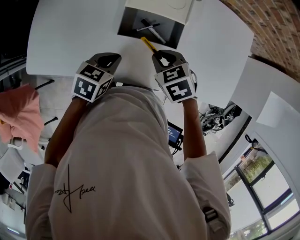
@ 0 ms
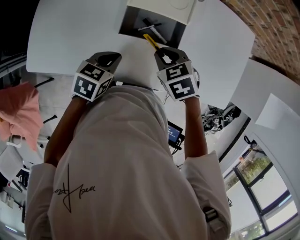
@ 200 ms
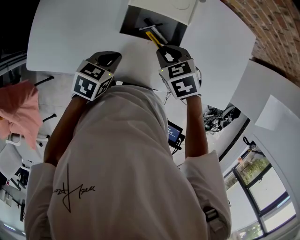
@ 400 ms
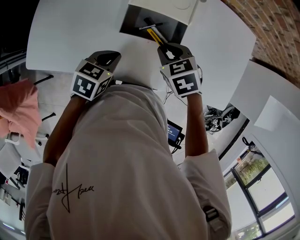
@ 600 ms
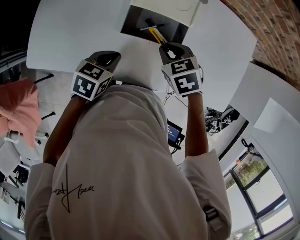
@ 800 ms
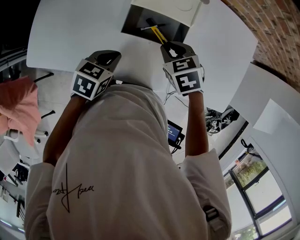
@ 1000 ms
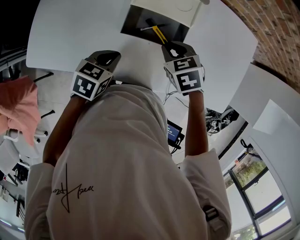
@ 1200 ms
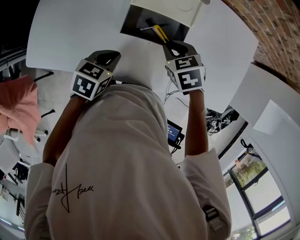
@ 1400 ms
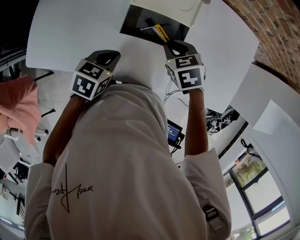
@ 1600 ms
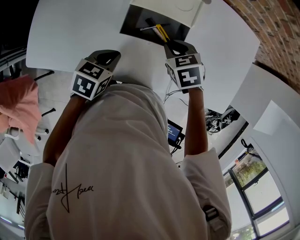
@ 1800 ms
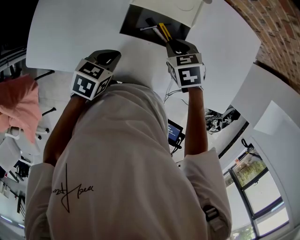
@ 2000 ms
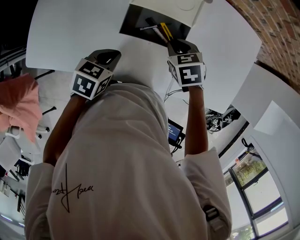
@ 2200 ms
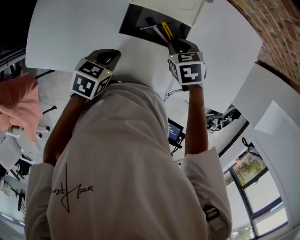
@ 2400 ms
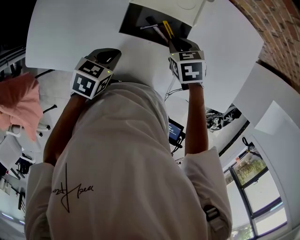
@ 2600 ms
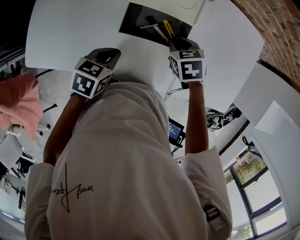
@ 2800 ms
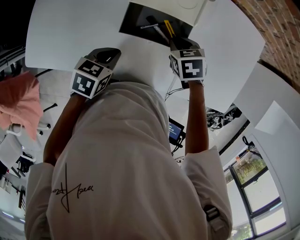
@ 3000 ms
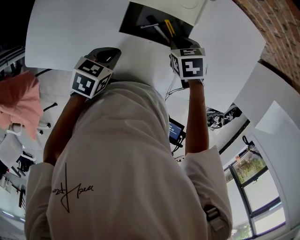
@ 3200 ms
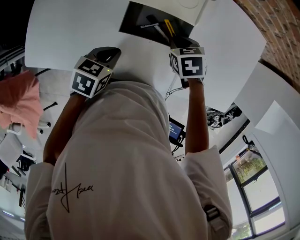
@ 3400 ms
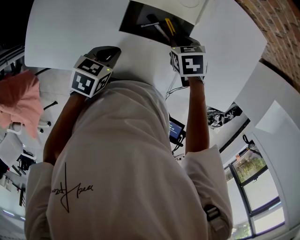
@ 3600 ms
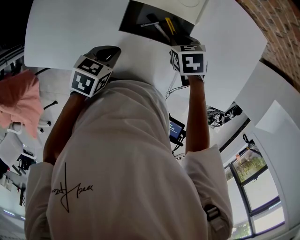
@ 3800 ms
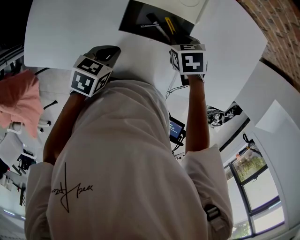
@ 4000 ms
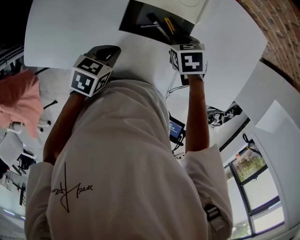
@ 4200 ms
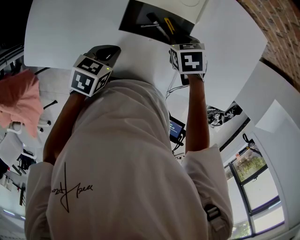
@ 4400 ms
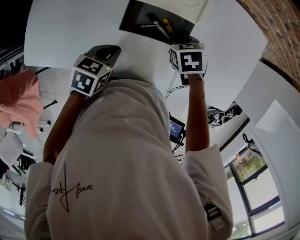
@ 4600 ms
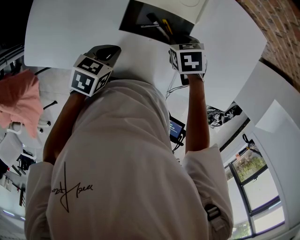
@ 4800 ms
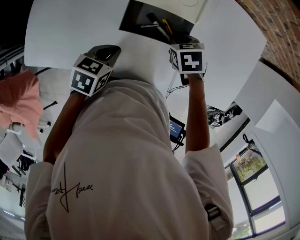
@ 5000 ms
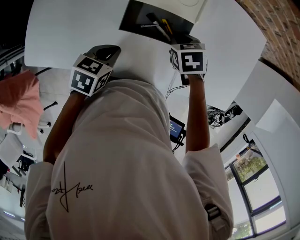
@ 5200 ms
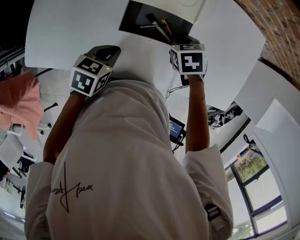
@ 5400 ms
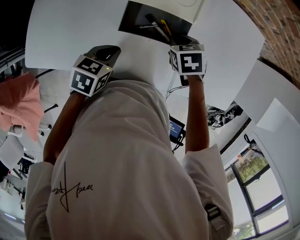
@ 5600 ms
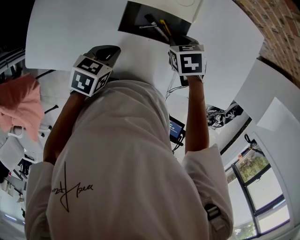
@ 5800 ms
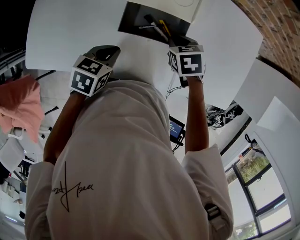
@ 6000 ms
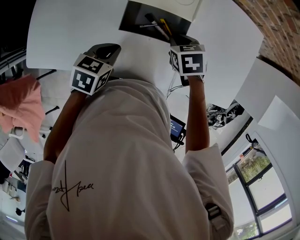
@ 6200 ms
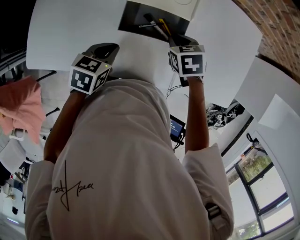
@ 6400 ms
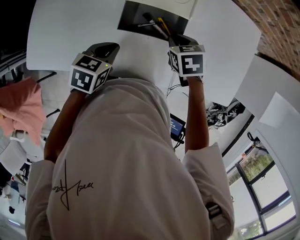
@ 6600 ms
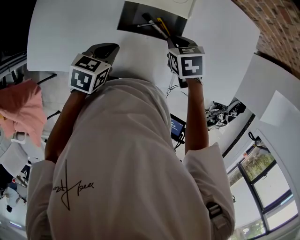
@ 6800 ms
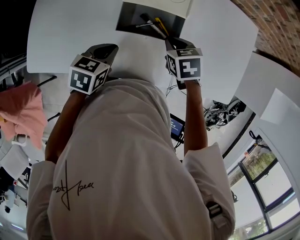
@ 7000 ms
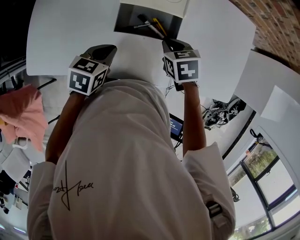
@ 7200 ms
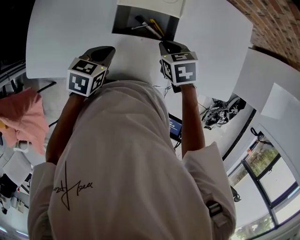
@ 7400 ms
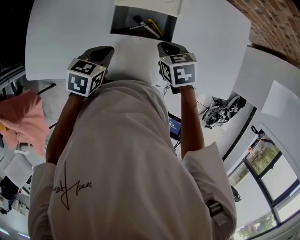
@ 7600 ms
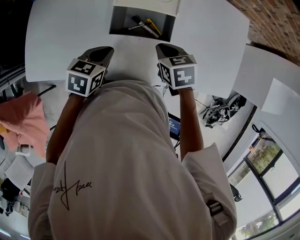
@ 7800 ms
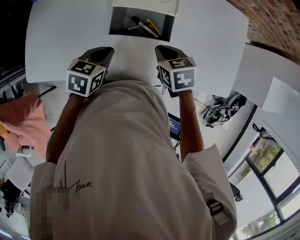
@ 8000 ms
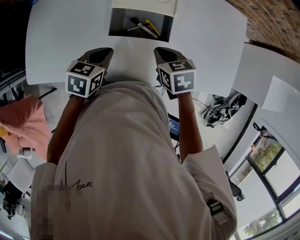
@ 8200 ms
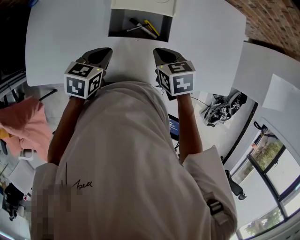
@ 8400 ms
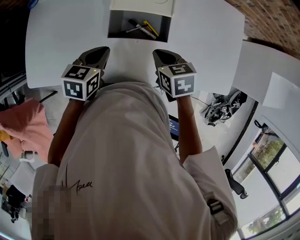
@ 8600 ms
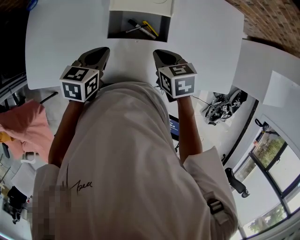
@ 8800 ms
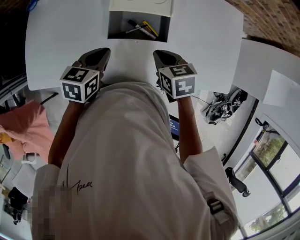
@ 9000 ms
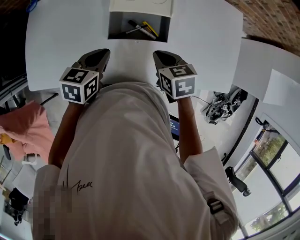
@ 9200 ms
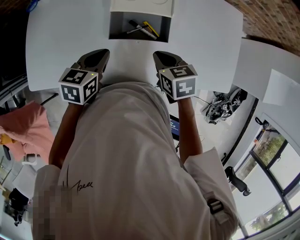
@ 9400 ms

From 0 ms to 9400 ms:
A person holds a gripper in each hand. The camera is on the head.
From 0 ms to 1600 ms: The right gripper travels forward by roughly 5 cm.
From 1600 ms to 3200 ms: The right gripper shifts by roughly 5 cm.
From 3200 ms to 4800 ms: Neither gripper changes place.
From 4800 ms to 6200 ms: The grippers stay close to where they were, moving slightly.
From 6200 ms to 7800 ms: The right gripper travels backward by some 5 cm.
From 7800 ms to 9400 ms: The grippers stay close to where they were, moving slightly.

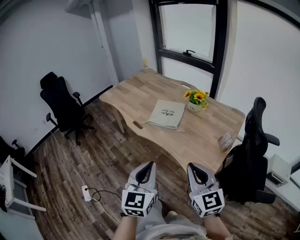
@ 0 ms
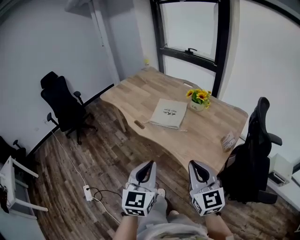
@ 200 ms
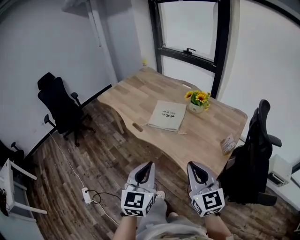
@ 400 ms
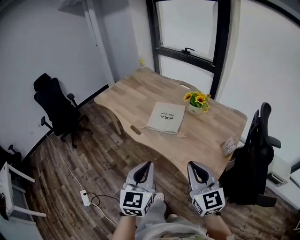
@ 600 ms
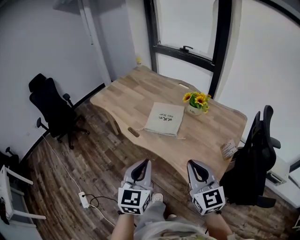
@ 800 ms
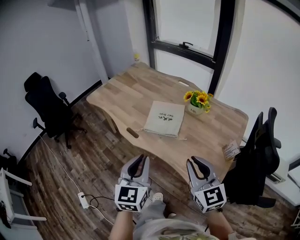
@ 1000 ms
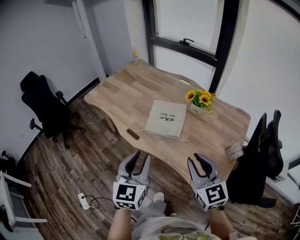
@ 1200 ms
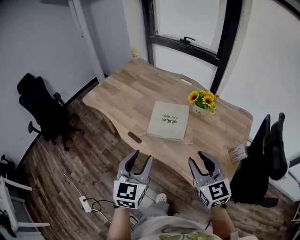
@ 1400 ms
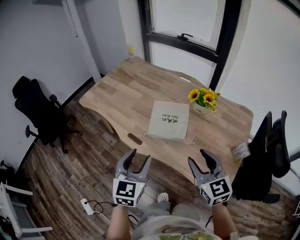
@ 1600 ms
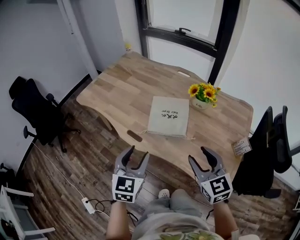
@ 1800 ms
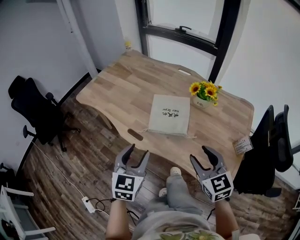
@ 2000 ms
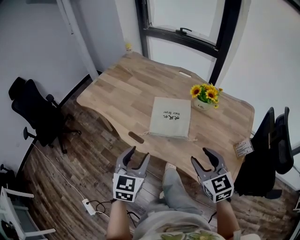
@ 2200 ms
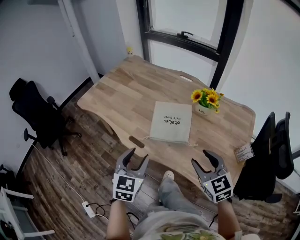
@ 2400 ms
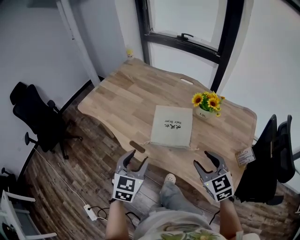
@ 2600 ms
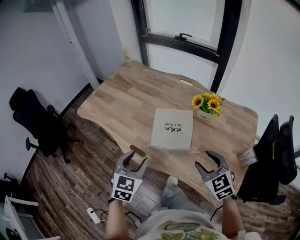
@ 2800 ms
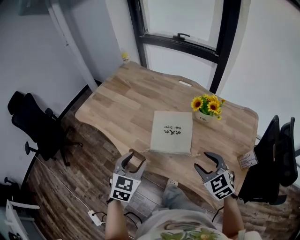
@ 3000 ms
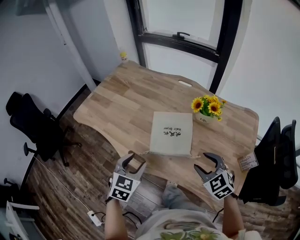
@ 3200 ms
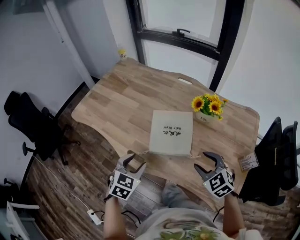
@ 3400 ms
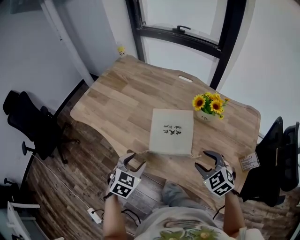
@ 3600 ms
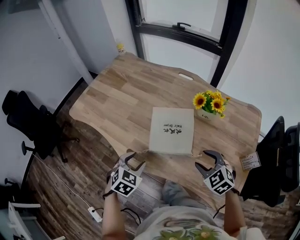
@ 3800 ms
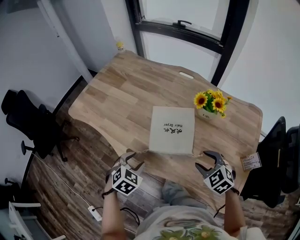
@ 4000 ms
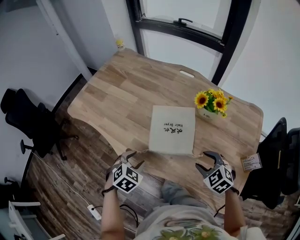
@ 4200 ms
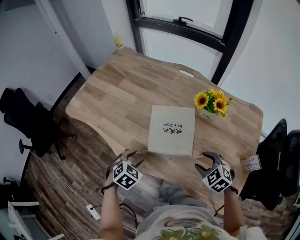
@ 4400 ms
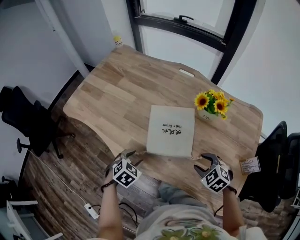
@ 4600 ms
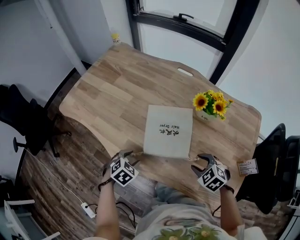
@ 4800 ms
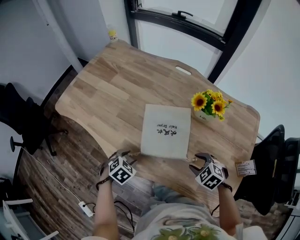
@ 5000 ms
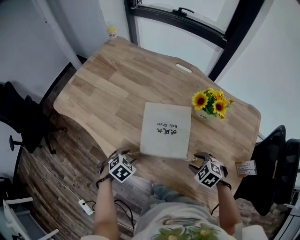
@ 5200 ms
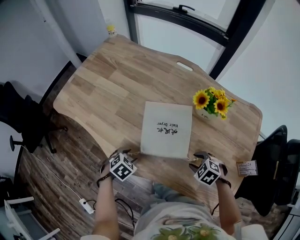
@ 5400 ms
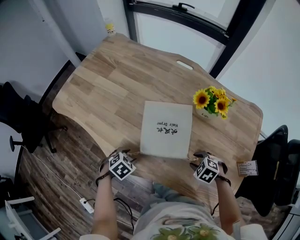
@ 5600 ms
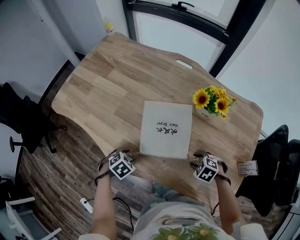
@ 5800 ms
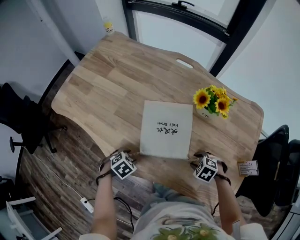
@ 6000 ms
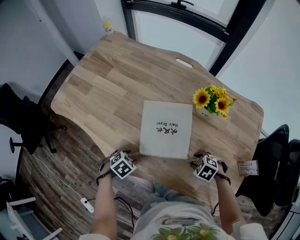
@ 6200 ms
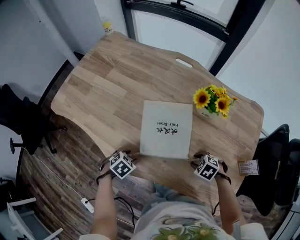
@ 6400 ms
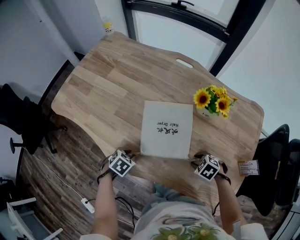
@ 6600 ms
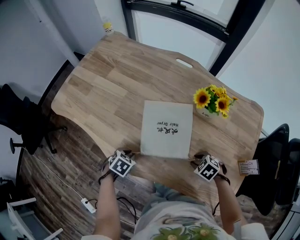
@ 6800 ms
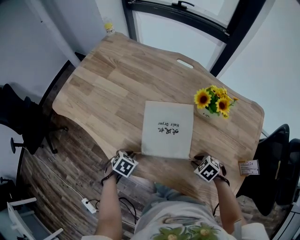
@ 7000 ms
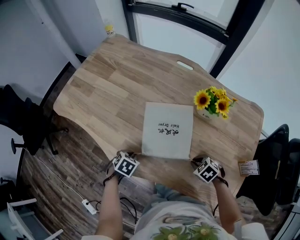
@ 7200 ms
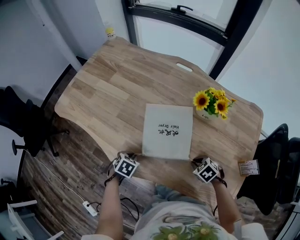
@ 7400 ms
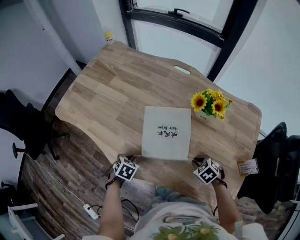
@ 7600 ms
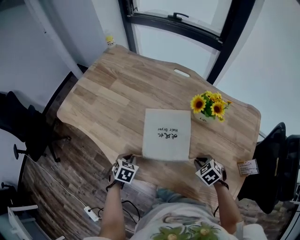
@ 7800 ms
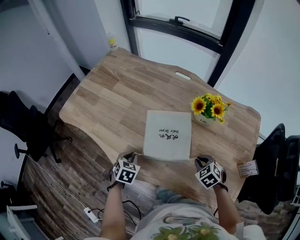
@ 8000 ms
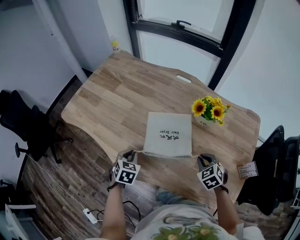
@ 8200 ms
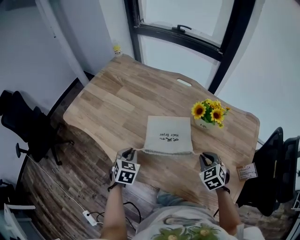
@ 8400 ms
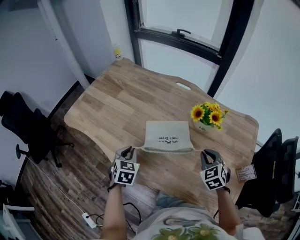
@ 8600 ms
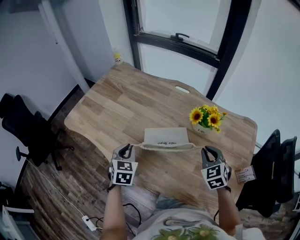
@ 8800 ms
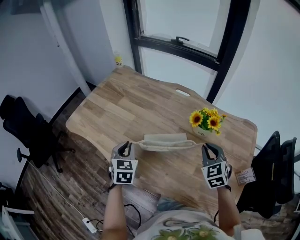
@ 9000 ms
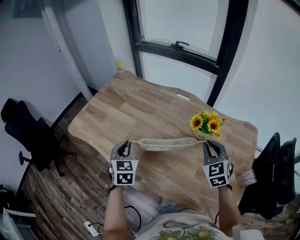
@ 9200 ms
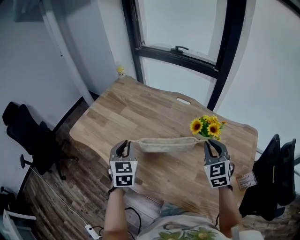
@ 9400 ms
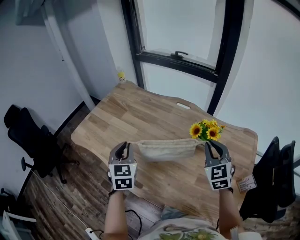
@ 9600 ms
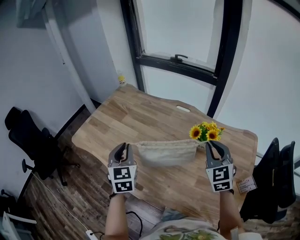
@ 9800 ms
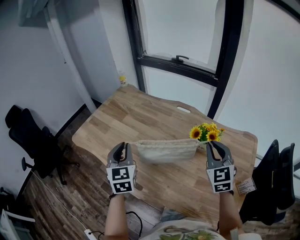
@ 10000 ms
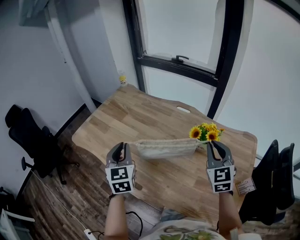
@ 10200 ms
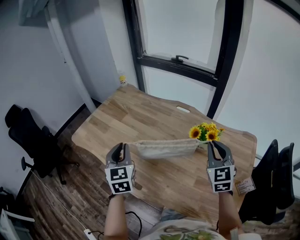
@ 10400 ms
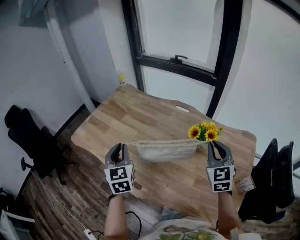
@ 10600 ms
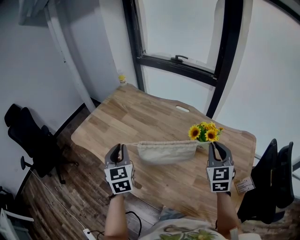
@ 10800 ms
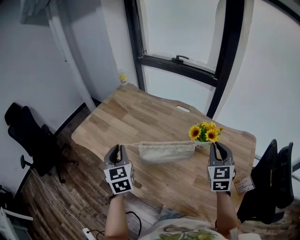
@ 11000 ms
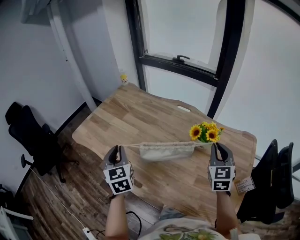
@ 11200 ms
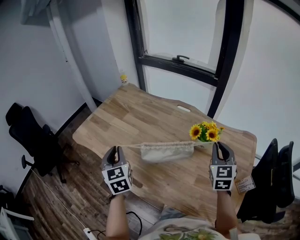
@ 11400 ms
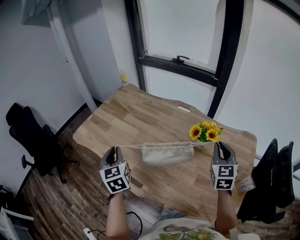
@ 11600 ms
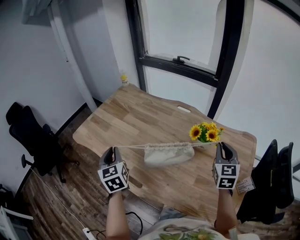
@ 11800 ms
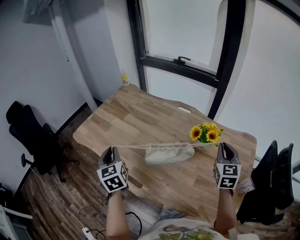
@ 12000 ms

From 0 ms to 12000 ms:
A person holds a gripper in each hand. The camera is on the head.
From 0 ms to 1600 ms: The two grippers go roughly 25 cm forward. The left gripper opens its fingers. The right gripper opens its fingers.
From 1600 ms to 3000 ms: The left gripper goes some 15 cm forward and downward, while the right gripper travels downward and forward by roughly 10 cm, and rotates about 30 degrees.
From 3000 ms to 4400 ms: The two grippers go some 15 cm downward. The left gripper swivels approximately 30 degrees.
From 4400 ms to 6000 ms: Both grippers travel together downward, about 10 cm. The right gripper swivels approximately 30 degrees. Meanwhile the left gripper turns by approximately 20 degrees.
From 6000 ms to 7600 ms: The right gripper rotates roughly 20 degrees, and closes up, while the left gripper swivels approximately 20 degrees, and closes up.
From 7600 ms to 9000 ms: The grippers both shift upward and forward by some 25 cm. The right gripper angles its fingers upward, by some 40 degrees. Meanwhile the left gripper tips its fingers upward by roughly 40 degrees.
From 9000 ms to 10400 ms: Both grippers travel together upward, approximately 15 cm. The left gripper turns by approximately 20 degrees.
From 10400 ms to 12000 ms: The left gripper goes approximately 5 cm to the left. Meanwhile the right gripper heads to the right, covering about 5 cm.

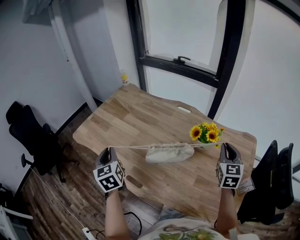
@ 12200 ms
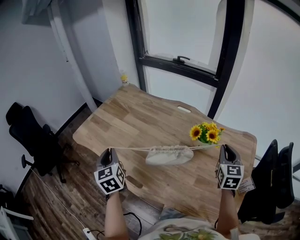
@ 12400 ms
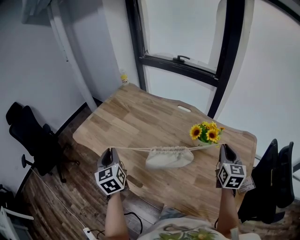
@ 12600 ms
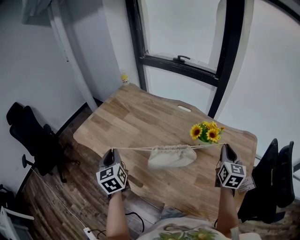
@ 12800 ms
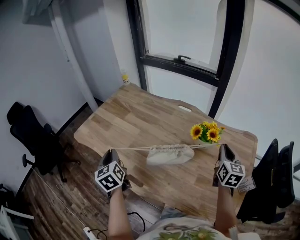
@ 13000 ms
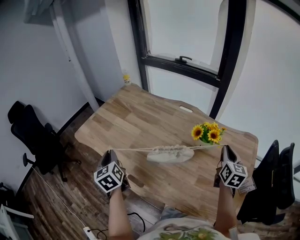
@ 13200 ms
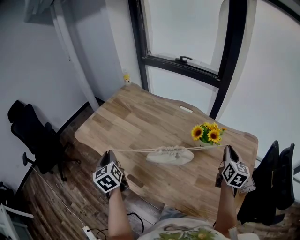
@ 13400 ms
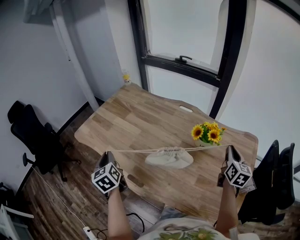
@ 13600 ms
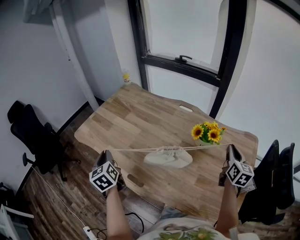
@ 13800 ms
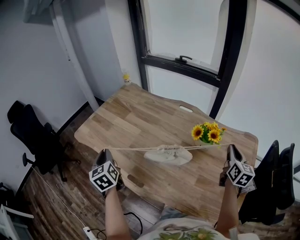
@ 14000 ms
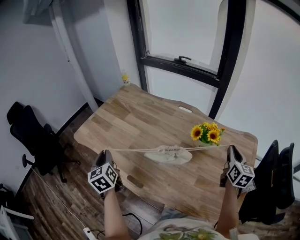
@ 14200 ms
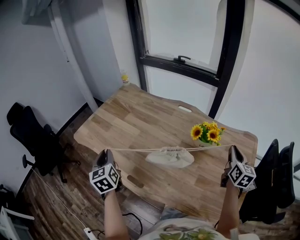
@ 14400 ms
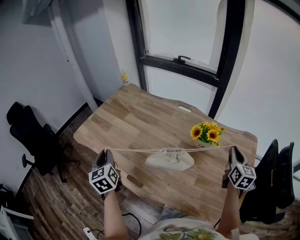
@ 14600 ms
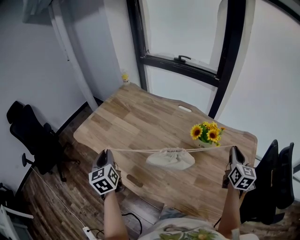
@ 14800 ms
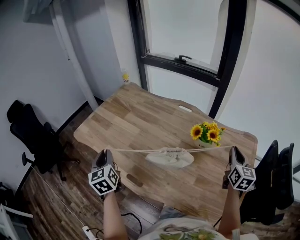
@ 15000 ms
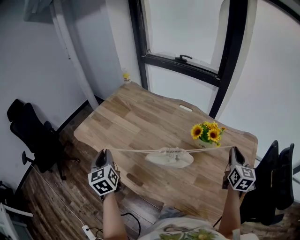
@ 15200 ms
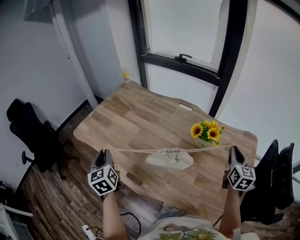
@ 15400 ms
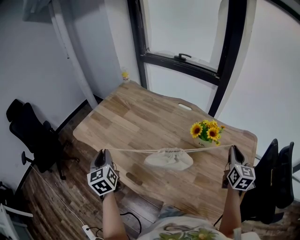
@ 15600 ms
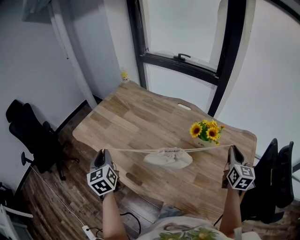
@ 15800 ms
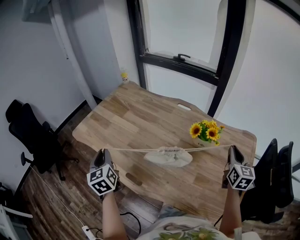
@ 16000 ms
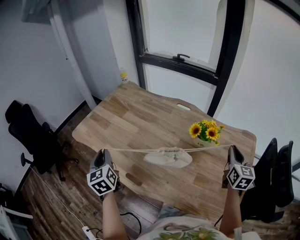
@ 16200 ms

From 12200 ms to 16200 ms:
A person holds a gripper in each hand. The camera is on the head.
From 12200 ms to 13600 ms: The right gripper turns by about 20 degrees.
From 13600 ms to 14800 ms: The grippers move only a little.
From 14800 ms to 16200 ms: The two grippers keep their place.
